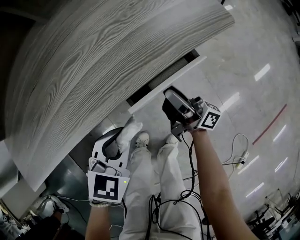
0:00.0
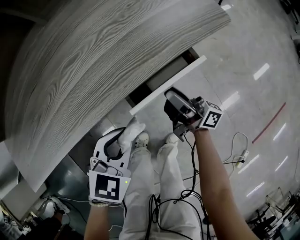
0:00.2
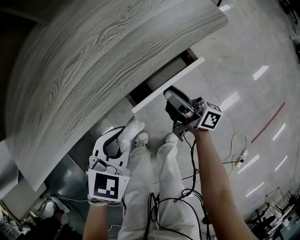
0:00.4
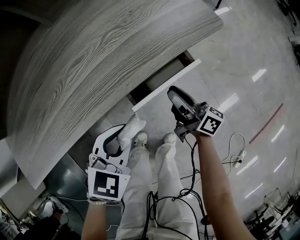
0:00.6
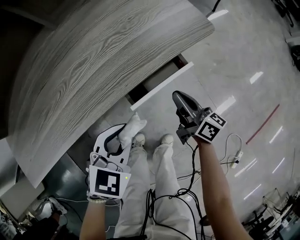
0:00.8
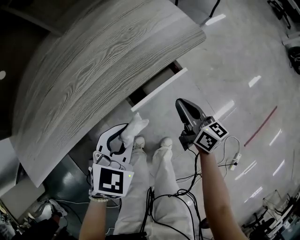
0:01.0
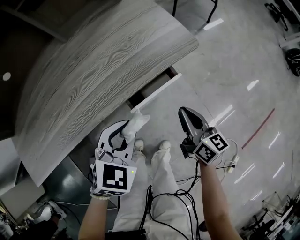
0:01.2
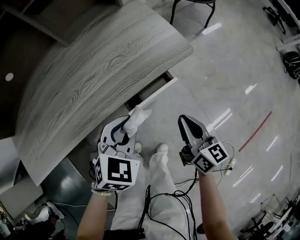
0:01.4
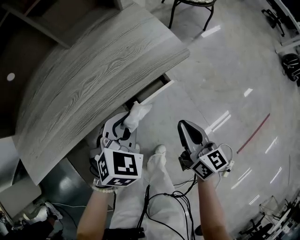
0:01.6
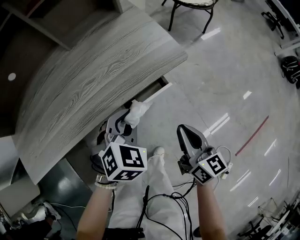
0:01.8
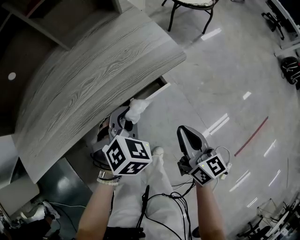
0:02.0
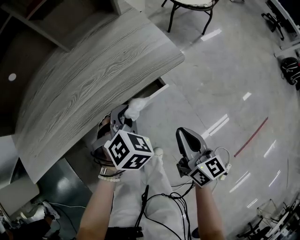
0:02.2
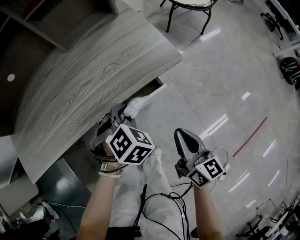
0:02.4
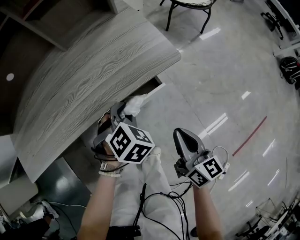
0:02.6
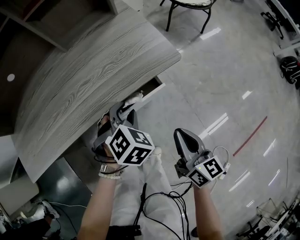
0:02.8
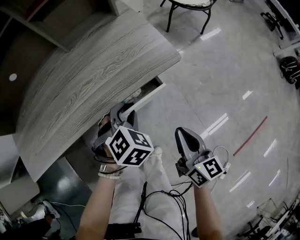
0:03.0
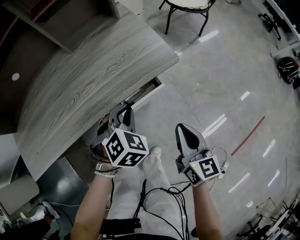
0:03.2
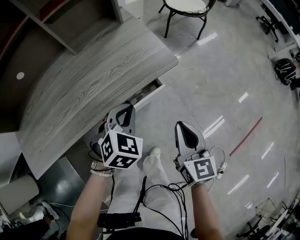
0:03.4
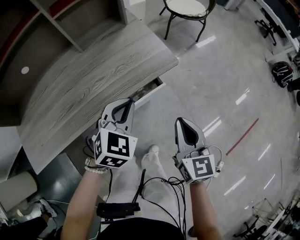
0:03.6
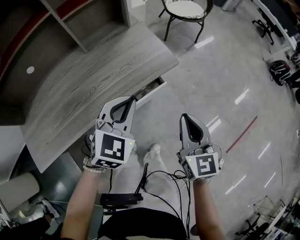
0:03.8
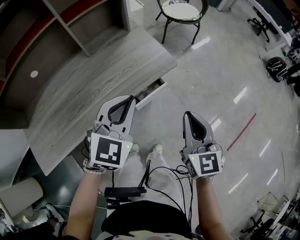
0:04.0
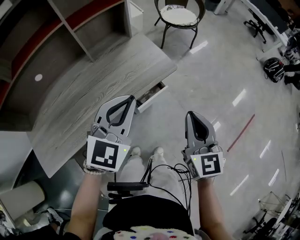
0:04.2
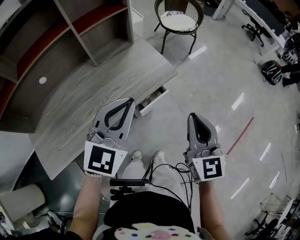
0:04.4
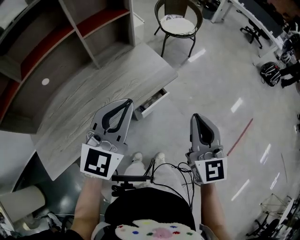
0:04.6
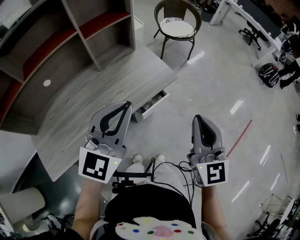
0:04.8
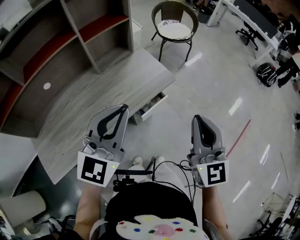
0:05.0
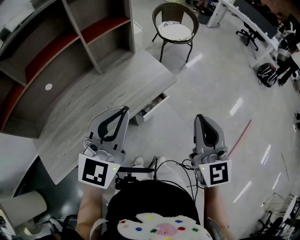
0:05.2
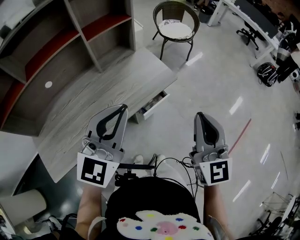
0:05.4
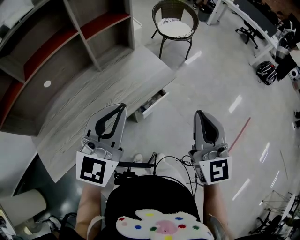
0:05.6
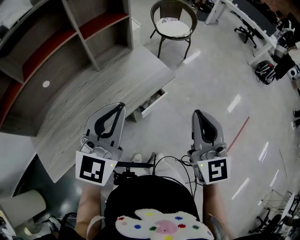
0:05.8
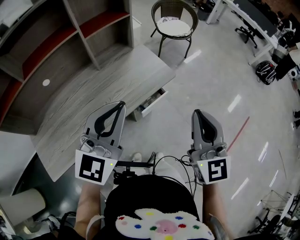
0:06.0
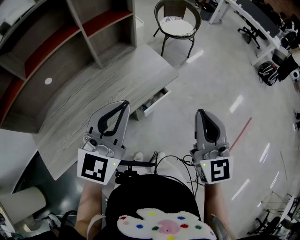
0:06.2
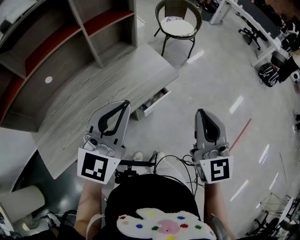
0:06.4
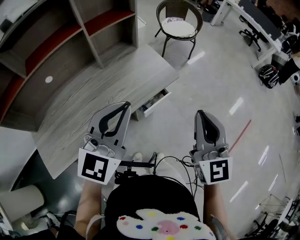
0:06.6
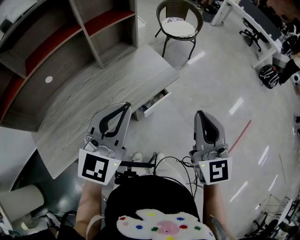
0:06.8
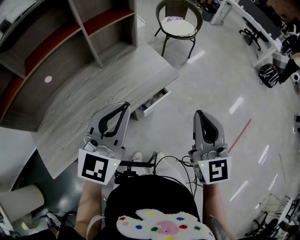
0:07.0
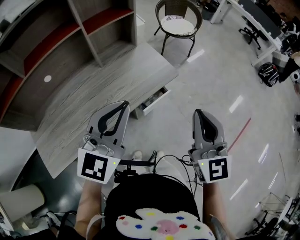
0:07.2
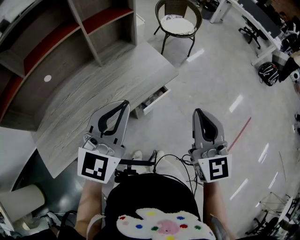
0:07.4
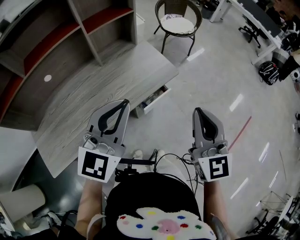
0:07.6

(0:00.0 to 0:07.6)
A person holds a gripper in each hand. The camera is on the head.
0:00.0 - 0:01.6: The left gripper moves upward and to the right, approximately 15 cm, while the right gripper shifts roughly 20 cm upward, to the right and backward, angles its fingers downward, by about 40 degrees, and closes its fingers.
0:03.0 - 0:04.6: Both grippers move upward, approximately 35 cm. The right gripper rotates about 40 degrees. Meanwhile the left gripper tilts its fingers about 50 degrees upward, and closes up.
0:04.6 - 0:07.6: There are only small adjustments of the grippers.

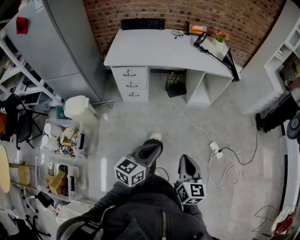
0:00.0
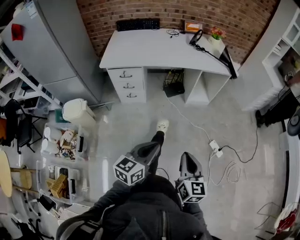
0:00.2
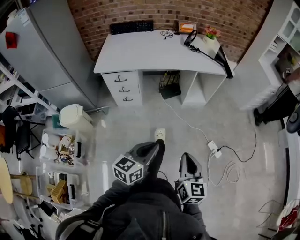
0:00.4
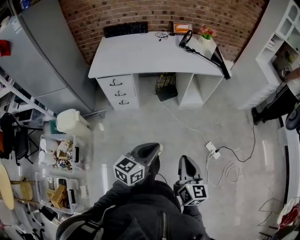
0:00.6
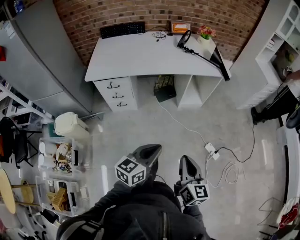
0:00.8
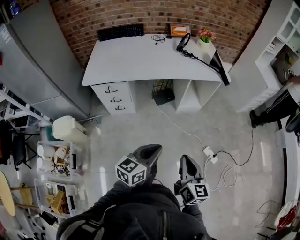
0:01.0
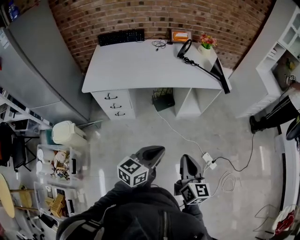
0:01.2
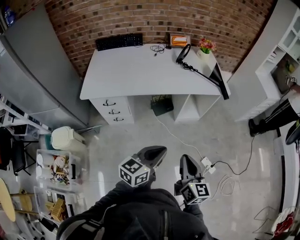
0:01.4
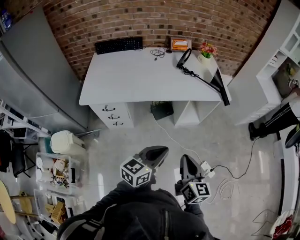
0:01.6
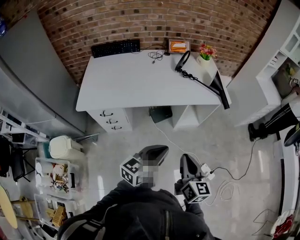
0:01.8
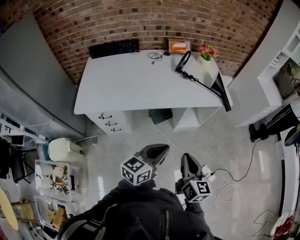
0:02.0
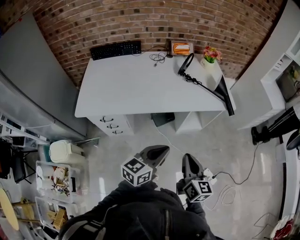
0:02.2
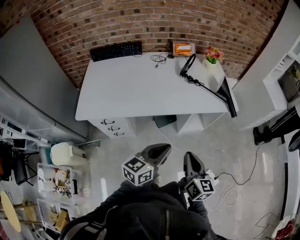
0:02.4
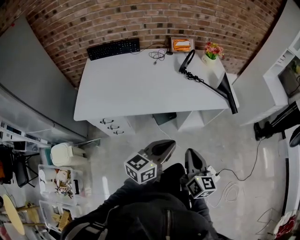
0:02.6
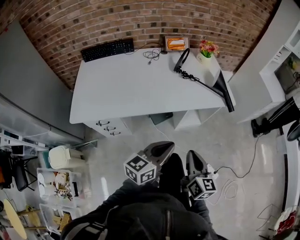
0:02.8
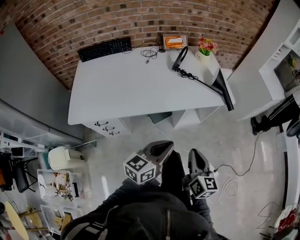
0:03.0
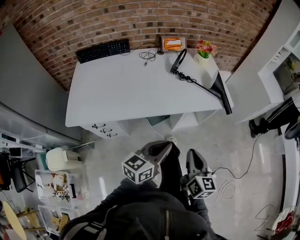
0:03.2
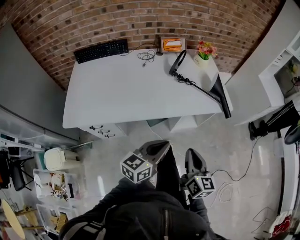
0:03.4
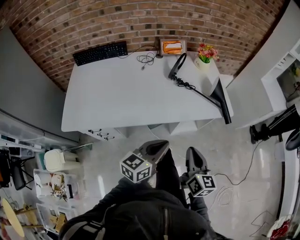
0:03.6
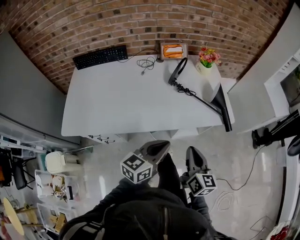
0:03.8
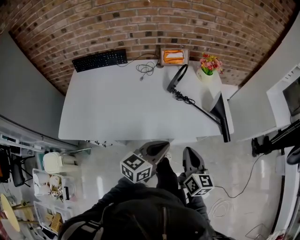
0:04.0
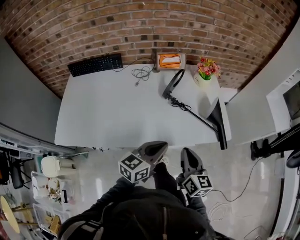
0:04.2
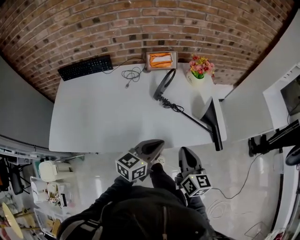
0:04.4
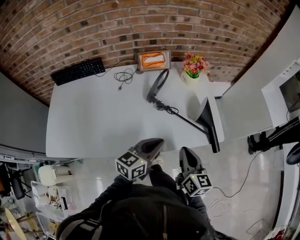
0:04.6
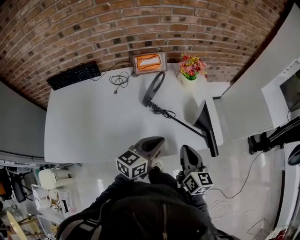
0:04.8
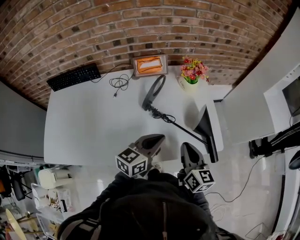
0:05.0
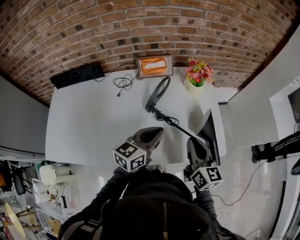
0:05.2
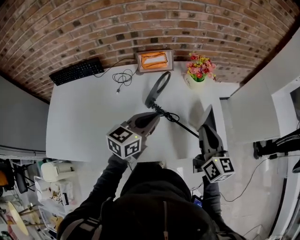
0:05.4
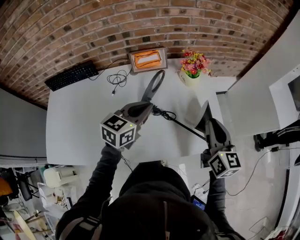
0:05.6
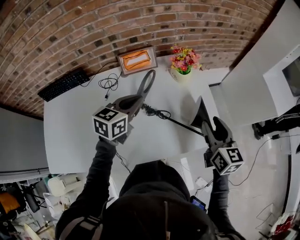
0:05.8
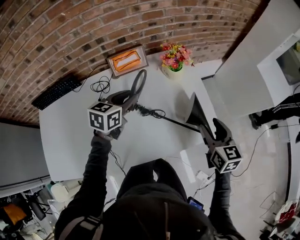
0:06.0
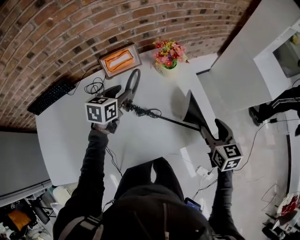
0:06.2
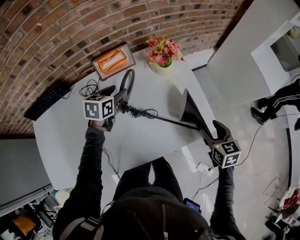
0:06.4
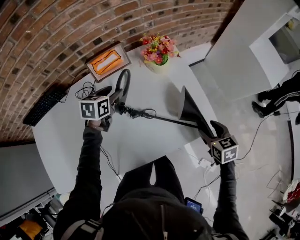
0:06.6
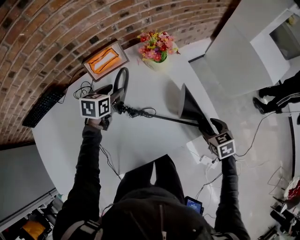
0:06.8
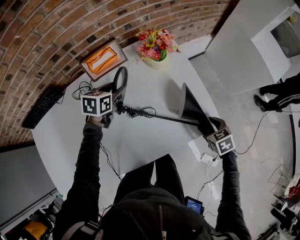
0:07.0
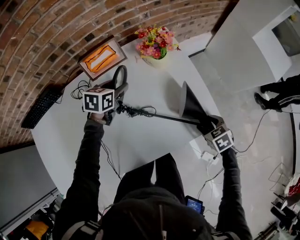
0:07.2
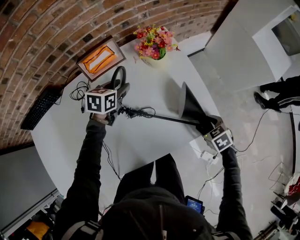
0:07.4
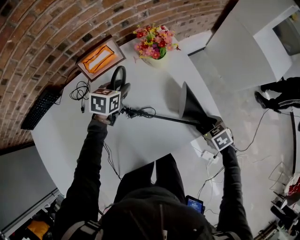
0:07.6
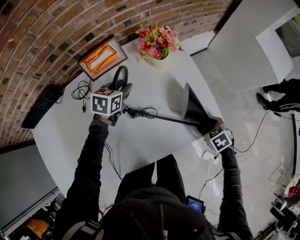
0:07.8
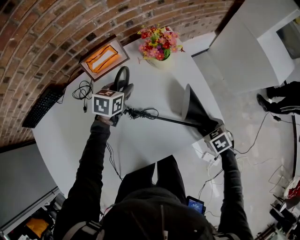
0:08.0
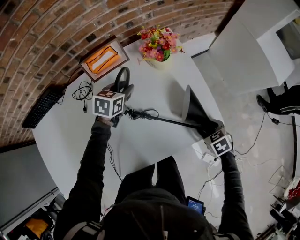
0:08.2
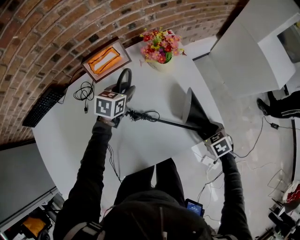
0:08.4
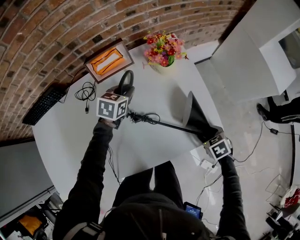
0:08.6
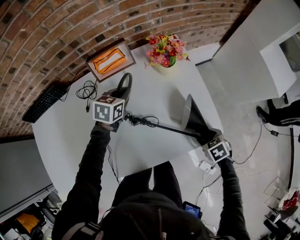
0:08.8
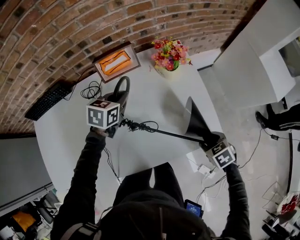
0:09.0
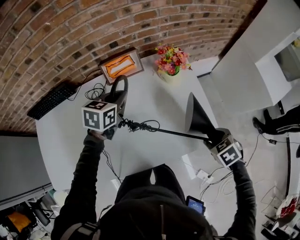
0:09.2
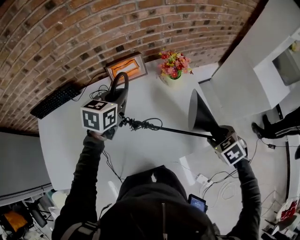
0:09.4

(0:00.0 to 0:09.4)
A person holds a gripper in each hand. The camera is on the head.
0:00.0 - 0:01.6: The two grippers go about 30 cm forward.
0:01.6 - 0:03.2: The grippers both shift forward by some 15 cm.
0:03.2 - 0:04.8: Both grippers move forward, approximately 35 cm.
0:04.8 - 0:06.2: The left gripper moves forward and to the left, about 25 cm, swivels some 20 degrees, and opens. Meanwhile the right gripper shifts about 15 cm to the right and forward, swivels roughly 20 degrees, and opens its fingers.
0:06.2 - 0:07.8: The right gripper is displaced downward by approximately 20 cm, and tilts its fingers approximately 40 degrees downward. Meanwhile the left gripper goes some 10 cm downward and forward.
0:07.8 - 0:09.4: The two grippers go roughly 15 cm upward. The left gripper closes.

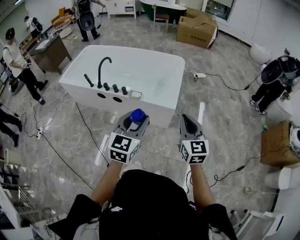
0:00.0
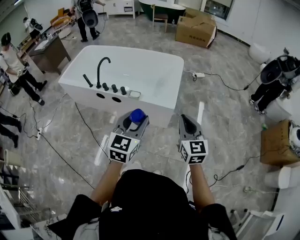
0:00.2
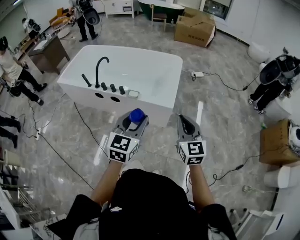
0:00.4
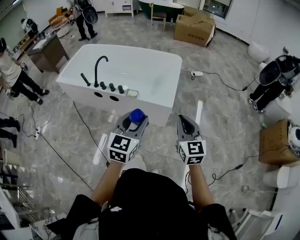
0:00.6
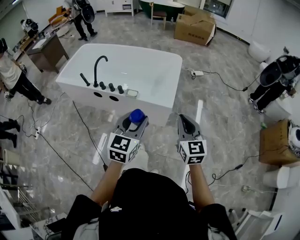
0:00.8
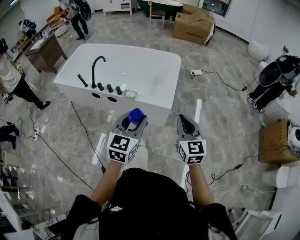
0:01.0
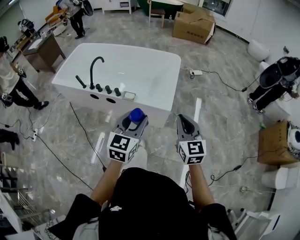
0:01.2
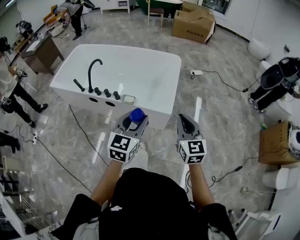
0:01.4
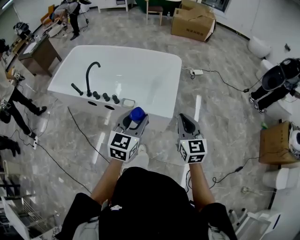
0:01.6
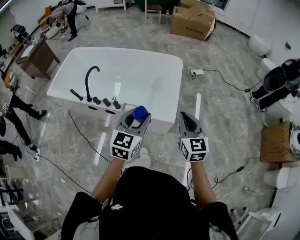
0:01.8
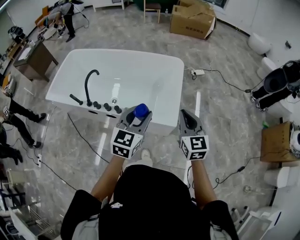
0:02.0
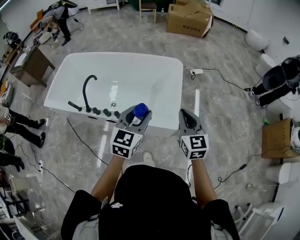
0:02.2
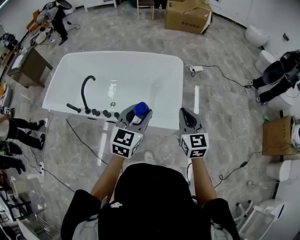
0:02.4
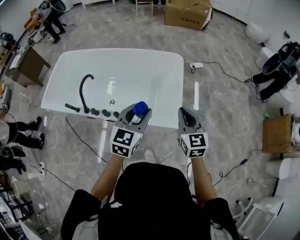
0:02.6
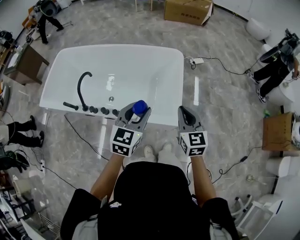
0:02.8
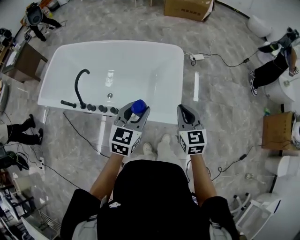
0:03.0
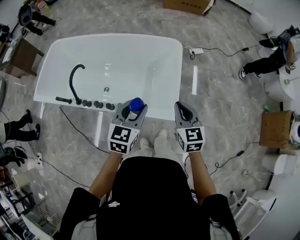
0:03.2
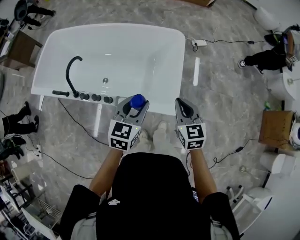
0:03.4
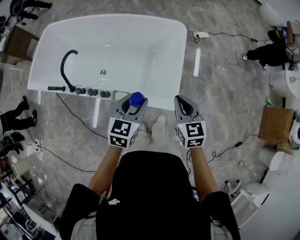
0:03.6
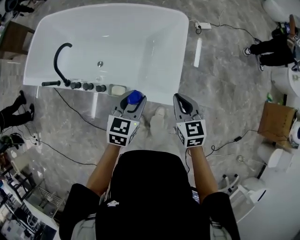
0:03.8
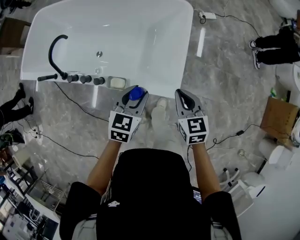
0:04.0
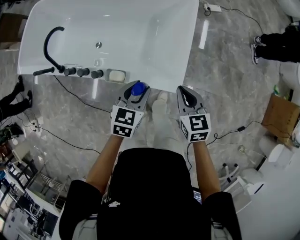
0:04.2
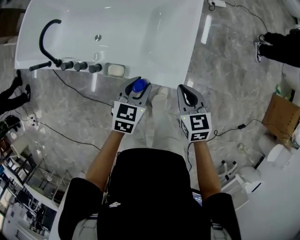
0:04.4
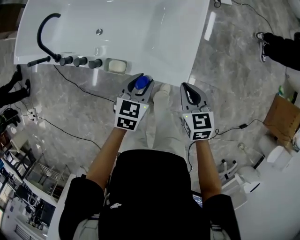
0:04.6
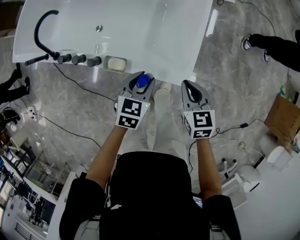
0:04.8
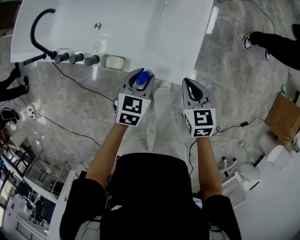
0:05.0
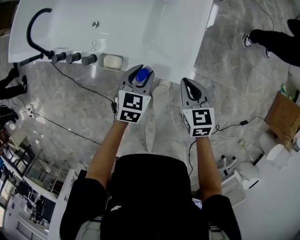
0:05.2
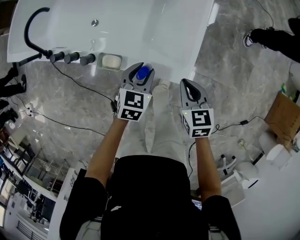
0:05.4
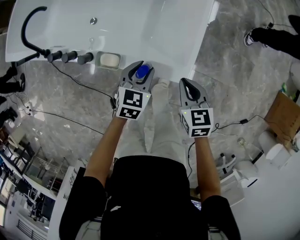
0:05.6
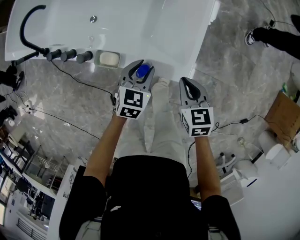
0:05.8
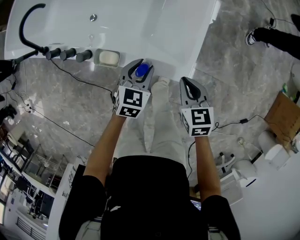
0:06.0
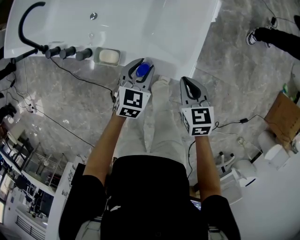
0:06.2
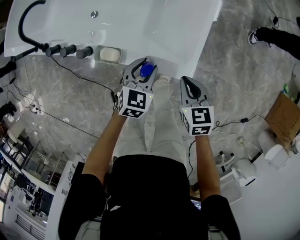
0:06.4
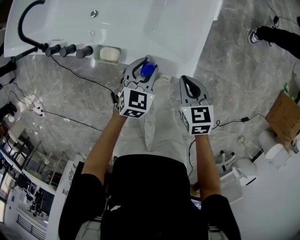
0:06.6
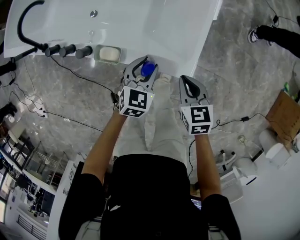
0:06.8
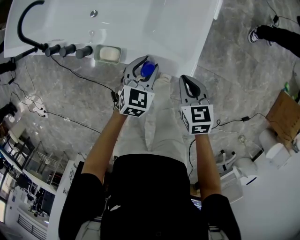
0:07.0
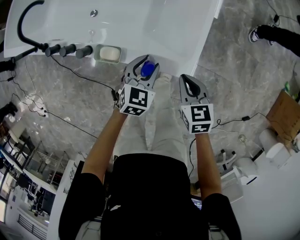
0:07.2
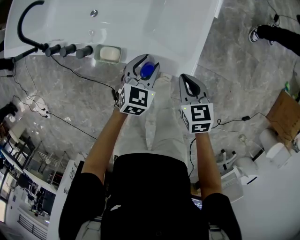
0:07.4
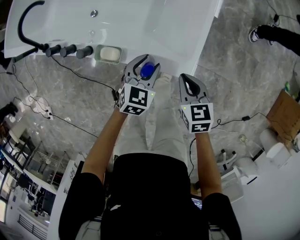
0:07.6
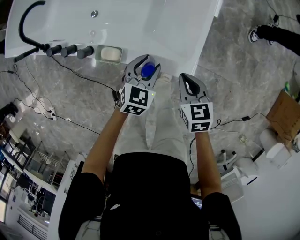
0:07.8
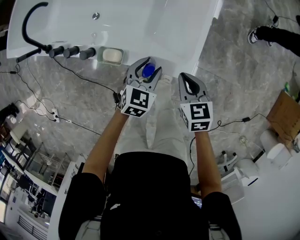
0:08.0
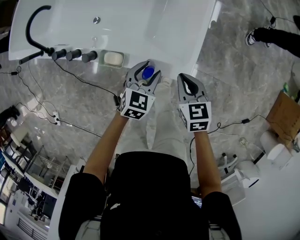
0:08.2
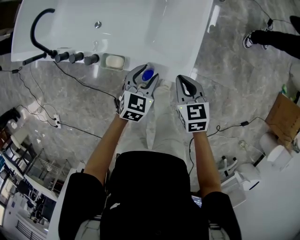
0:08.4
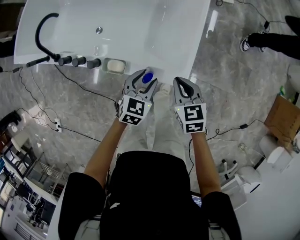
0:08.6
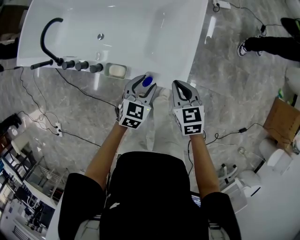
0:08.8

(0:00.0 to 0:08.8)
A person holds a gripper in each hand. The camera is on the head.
0:00.0 - 0:01.4: Both grippers travel together forward, roughly 10 cm.
0:01.4 - 0:03.0: Both grippers move forward, roughly 30 cm.
0:03.0 - 0:04.4: The two grippers go some 25 cm downward. The left gripper rotates approximately 20 degrees. Meanwhile the right gripper turns by roughly 20 degrees.
0:04.4 - 0:05.8: The two grippers go approximately 15 cm downward.
0:05.8 - 0:07.4: The grippers stay close to where they were, moving slightly.
0:07.4 - 0:08.8: Both grippers move upward, roughly 10 cm.
